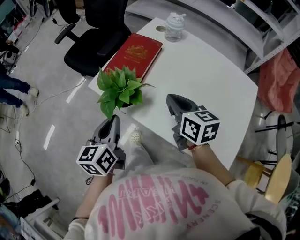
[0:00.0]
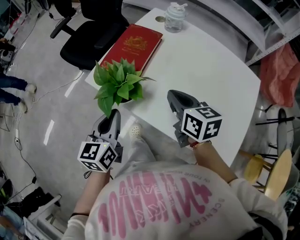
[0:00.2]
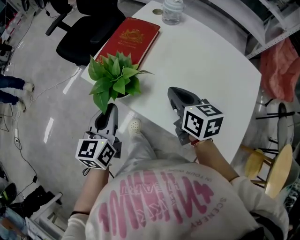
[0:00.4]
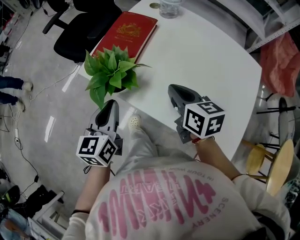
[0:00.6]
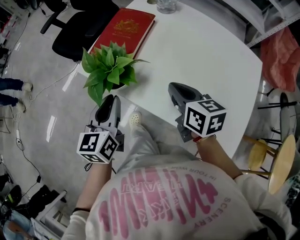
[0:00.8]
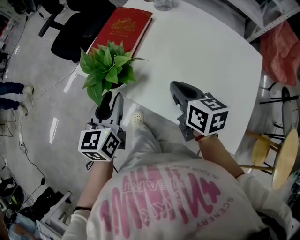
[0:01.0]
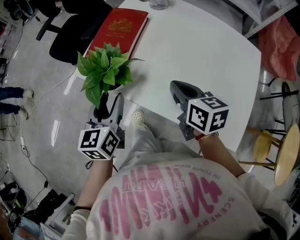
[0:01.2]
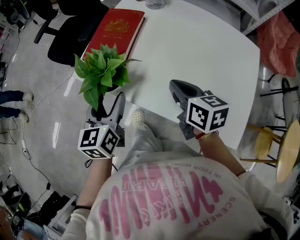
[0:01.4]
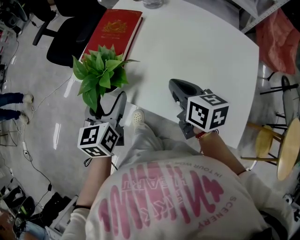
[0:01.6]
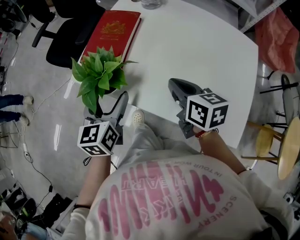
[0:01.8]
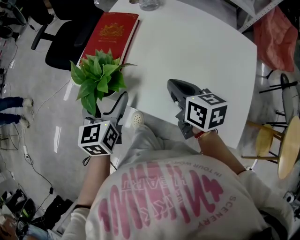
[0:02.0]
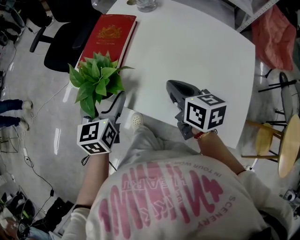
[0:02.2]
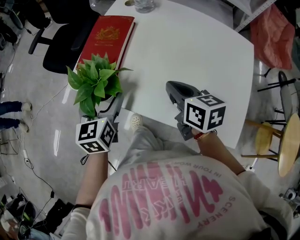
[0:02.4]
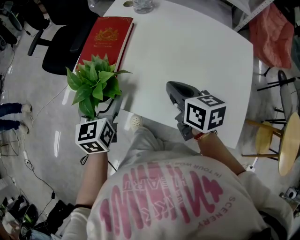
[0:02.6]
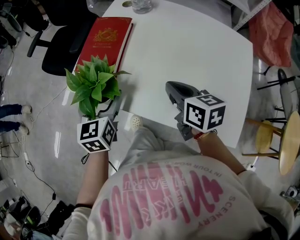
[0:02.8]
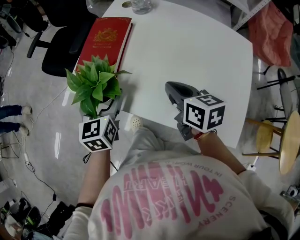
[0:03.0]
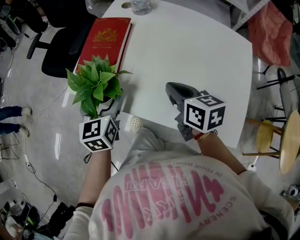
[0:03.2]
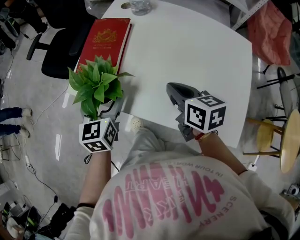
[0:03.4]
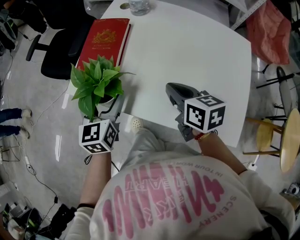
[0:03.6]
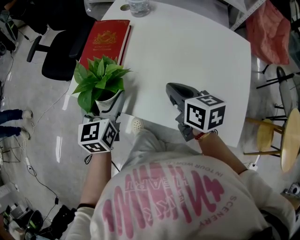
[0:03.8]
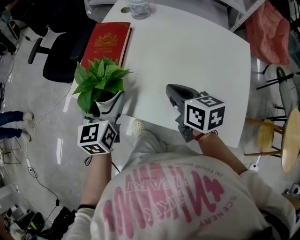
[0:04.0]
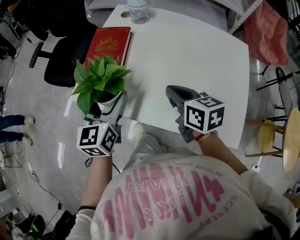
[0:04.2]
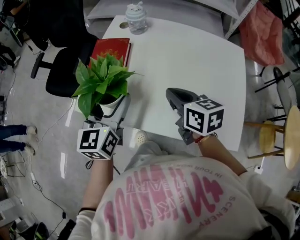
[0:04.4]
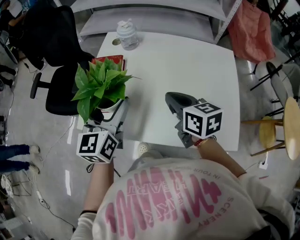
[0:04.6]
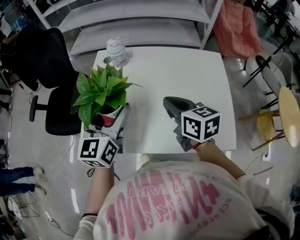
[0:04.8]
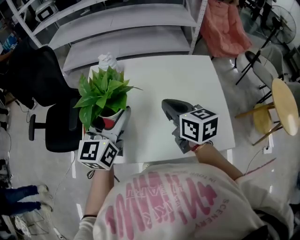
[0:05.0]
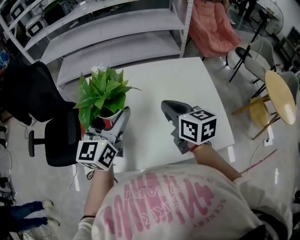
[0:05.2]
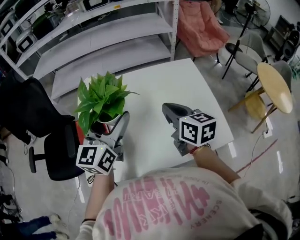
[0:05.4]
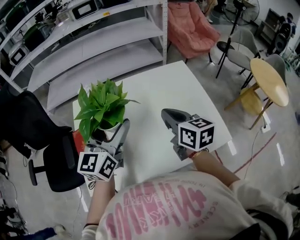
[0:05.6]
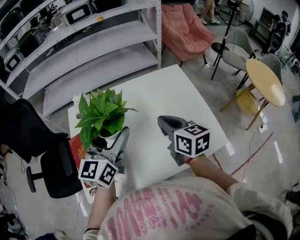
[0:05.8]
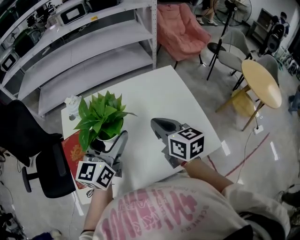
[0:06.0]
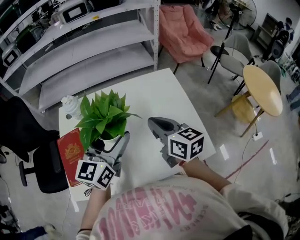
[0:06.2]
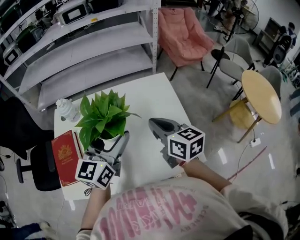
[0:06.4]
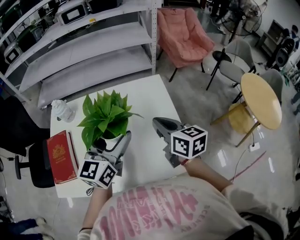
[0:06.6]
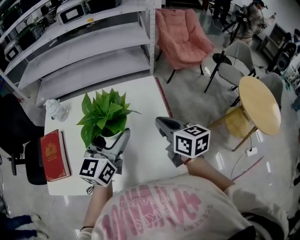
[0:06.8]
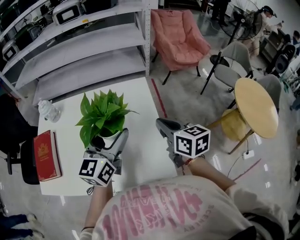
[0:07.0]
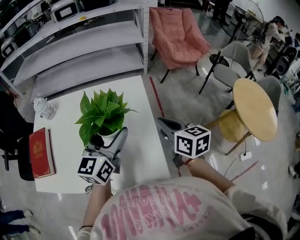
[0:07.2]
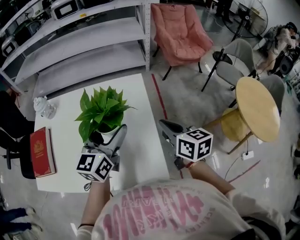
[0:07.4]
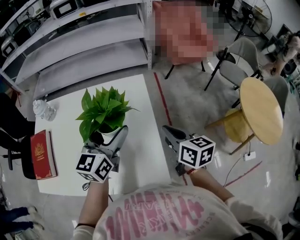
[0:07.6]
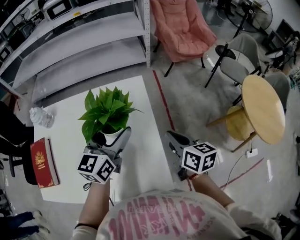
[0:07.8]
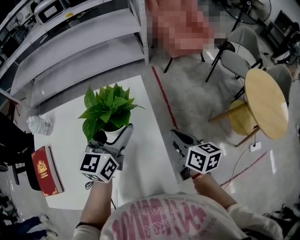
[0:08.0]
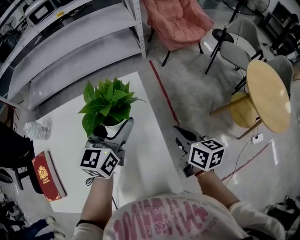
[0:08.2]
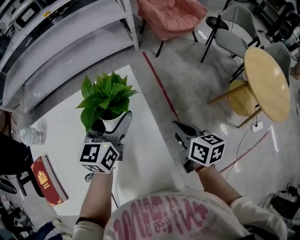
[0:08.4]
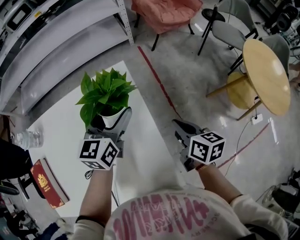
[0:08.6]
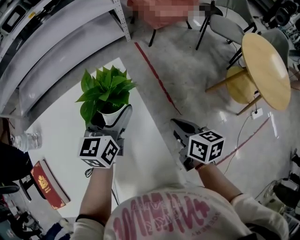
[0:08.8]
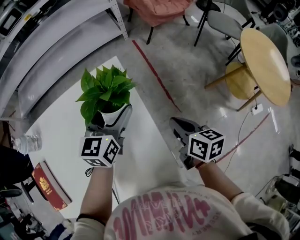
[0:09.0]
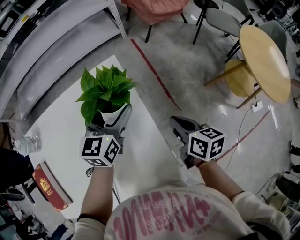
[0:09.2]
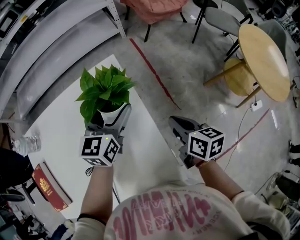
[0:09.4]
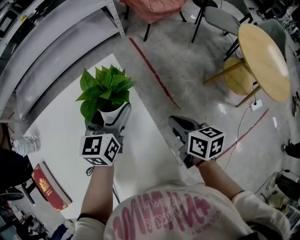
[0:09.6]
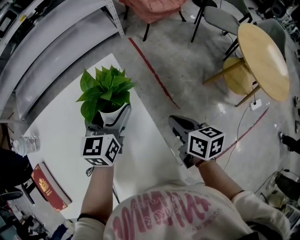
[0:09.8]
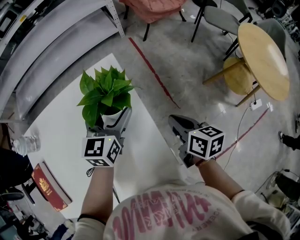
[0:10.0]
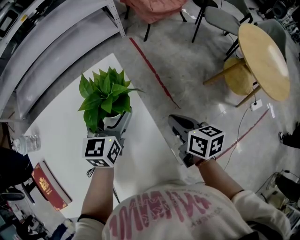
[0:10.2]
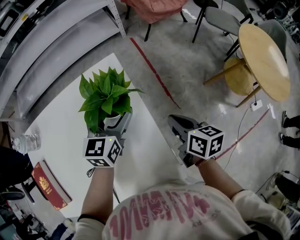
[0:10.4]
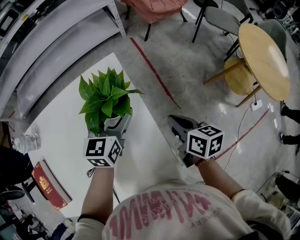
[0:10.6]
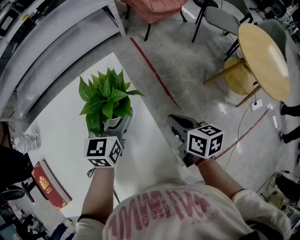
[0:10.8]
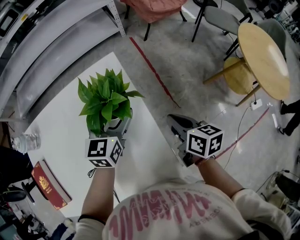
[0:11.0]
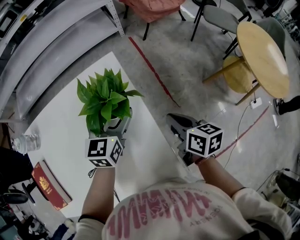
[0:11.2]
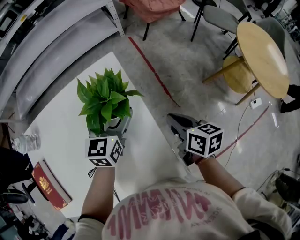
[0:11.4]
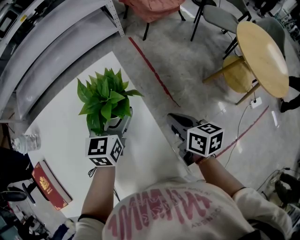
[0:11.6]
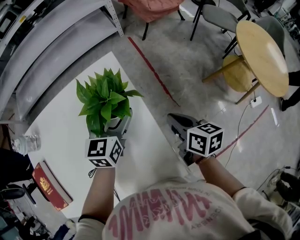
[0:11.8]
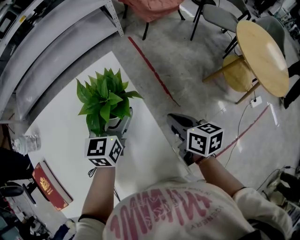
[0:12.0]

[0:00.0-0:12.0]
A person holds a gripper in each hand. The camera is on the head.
0:00.0 to 0:01.6: The right gripper shifts approximately 5 cm downward, while the left gripper moves some 5 cm, and opens up.
0:01.6 to 0:03.0: The grippers make only small movements.
0:03.0 to 0:04.4: The right gripper moves about 5 cm. Meanwhile the left gripper moves upward and to the right, about 10 cm.
0:04.4 to 0:06.0: The right gripper changes place by about 15 cm, and turns by about 30 degrees; the left gripper shifts by about 20 cm, and swivels about 40 degrees.
0:06.0 to 0:07.6: Both grippers move to the right, some 30 cm.
0:07.6 to 0:09.0: The left gripper is displaced forward, downward and to the right by about 20 cm, while the right gripper travels downward and to the right by roughly 10 cm, and changes its angle by about 20 degrees.
0:09.0 to 0:10.4: There are only small adjustments of the grippers.
0:10.4 to 0:12.0: Neither gripper changes place.

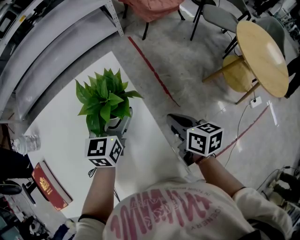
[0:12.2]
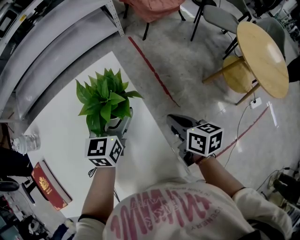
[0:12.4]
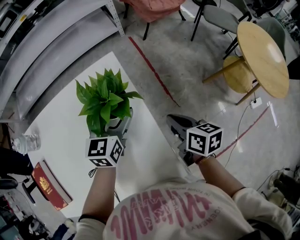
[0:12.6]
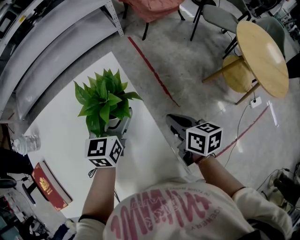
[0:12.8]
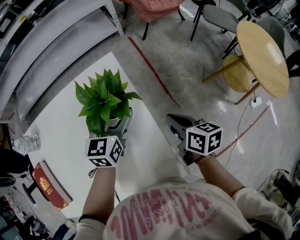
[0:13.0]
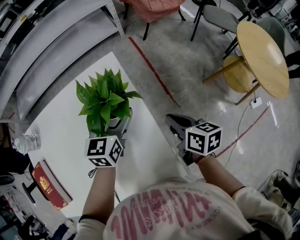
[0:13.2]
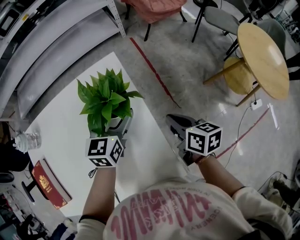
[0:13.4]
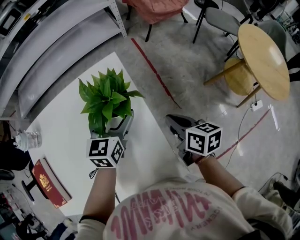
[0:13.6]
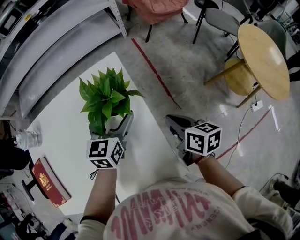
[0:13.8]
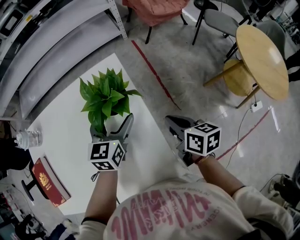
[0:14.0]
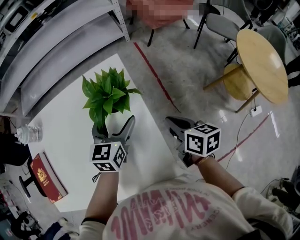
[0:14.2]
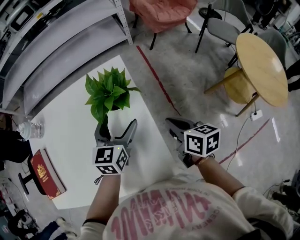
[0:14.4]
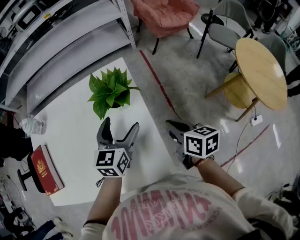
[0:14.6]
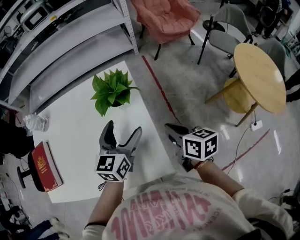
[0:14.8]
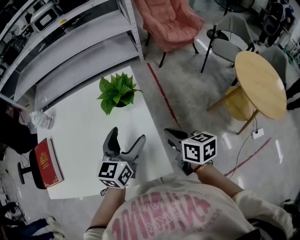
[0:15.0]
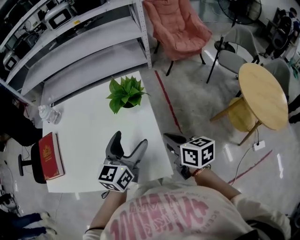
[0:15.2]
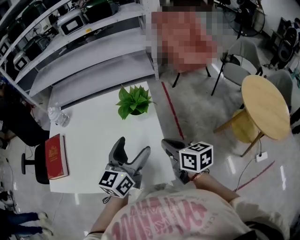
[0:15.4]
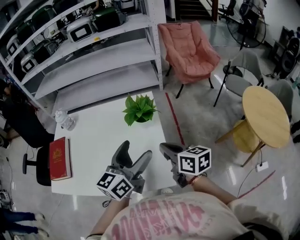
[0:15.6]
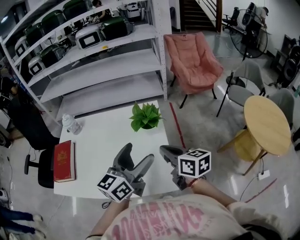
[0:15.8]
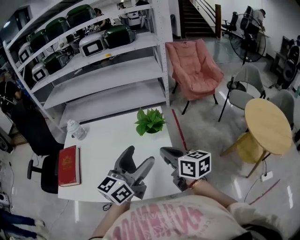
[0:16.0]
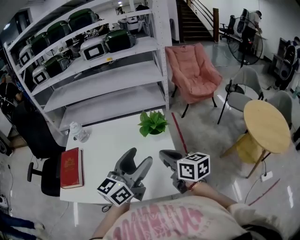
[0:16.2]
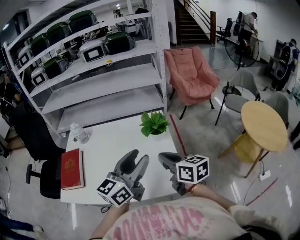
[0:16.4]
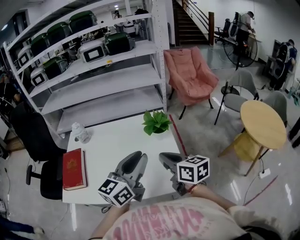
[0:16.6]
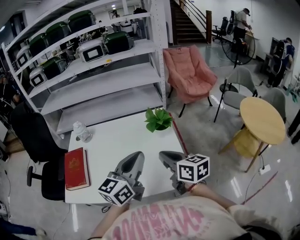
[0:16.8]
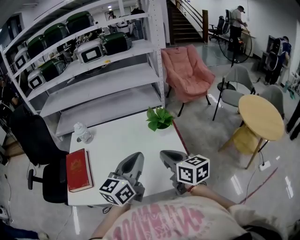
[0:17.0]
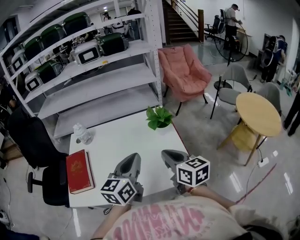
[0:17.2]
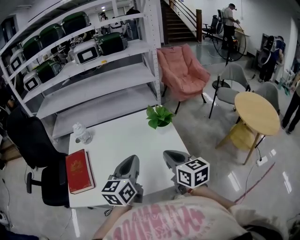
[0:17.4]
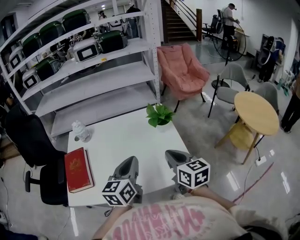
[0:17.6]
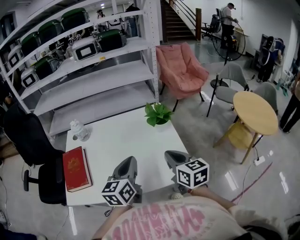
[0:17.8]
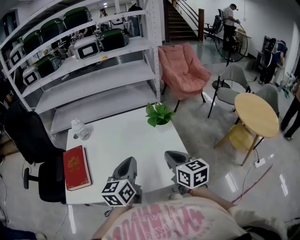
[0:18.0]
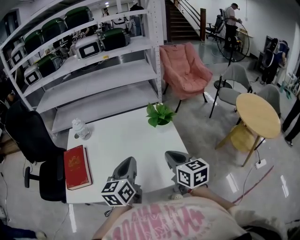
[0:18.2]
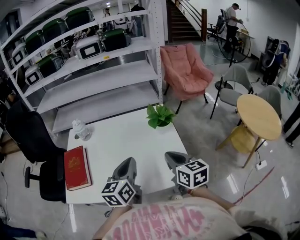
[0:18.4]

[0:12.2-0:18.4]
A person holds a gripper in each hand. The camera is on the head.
0:12.2 to 0:13.8: The grippers stay close to where they were, moving slightly.
0:13.8 to 0:15.4: The left gripper heads backward and upward, covering roughly 20 cm, and changes its angle by some 20 degrees, while the right gripper shifts approximately 15 cm upward, backward and to the left, and changes its angle by some 20 degrees.
0:15.4 to 0:16.8: The right gripper travels to the left and upward by approximately 15 cm; the left gripper goes approximately 15 cm to the left, upward and backward, and closes up.
0:16.8 to 0:18.4: The left gripper shifts roughly 10 cm to the left and downward.

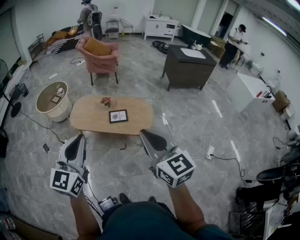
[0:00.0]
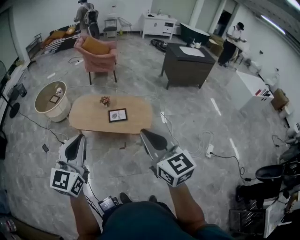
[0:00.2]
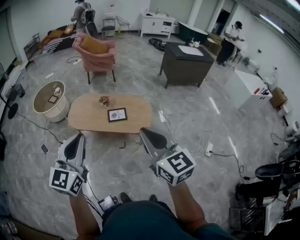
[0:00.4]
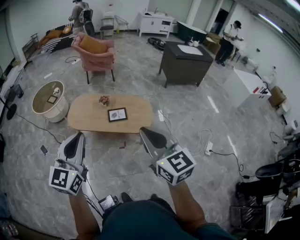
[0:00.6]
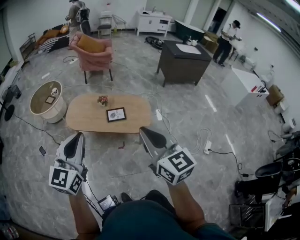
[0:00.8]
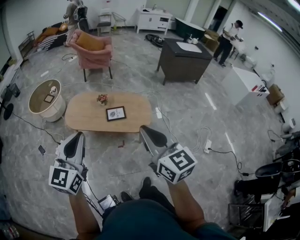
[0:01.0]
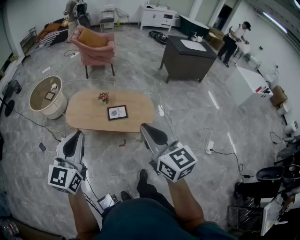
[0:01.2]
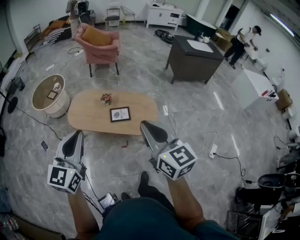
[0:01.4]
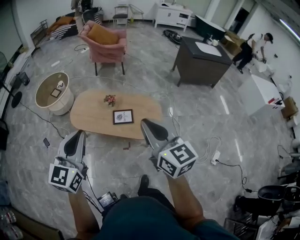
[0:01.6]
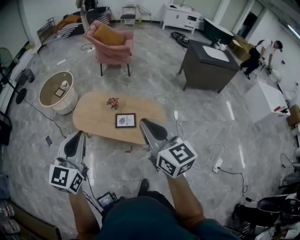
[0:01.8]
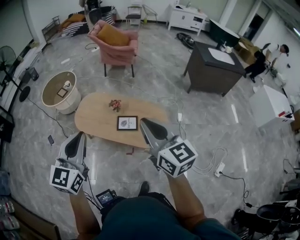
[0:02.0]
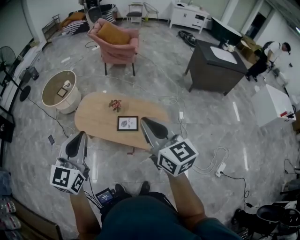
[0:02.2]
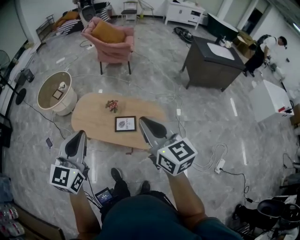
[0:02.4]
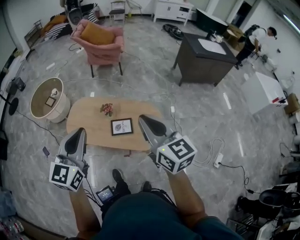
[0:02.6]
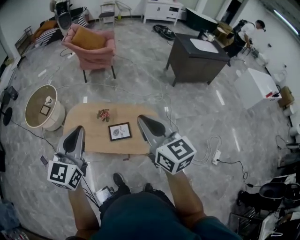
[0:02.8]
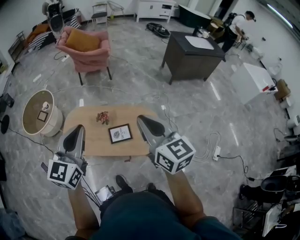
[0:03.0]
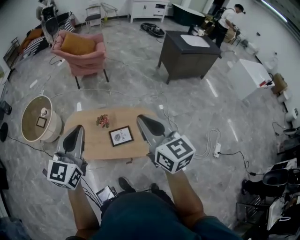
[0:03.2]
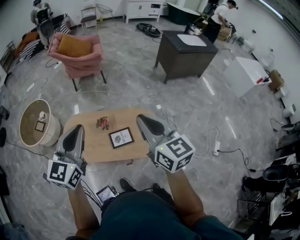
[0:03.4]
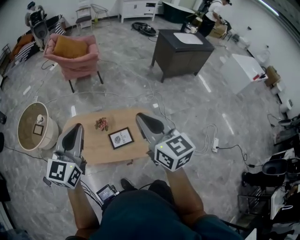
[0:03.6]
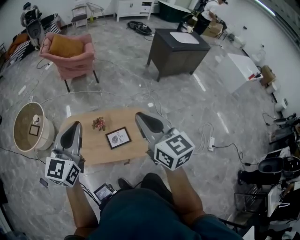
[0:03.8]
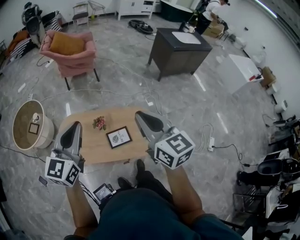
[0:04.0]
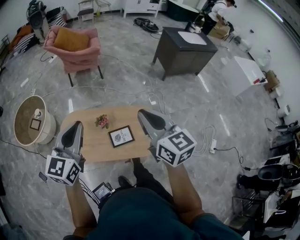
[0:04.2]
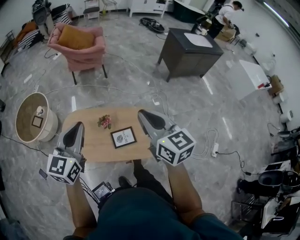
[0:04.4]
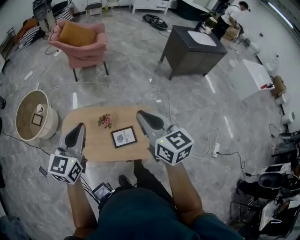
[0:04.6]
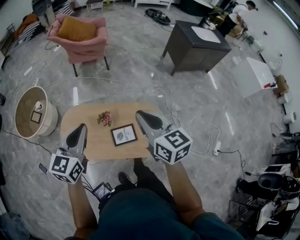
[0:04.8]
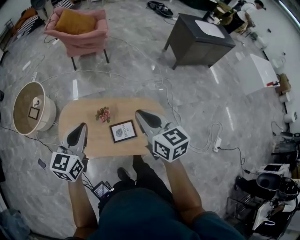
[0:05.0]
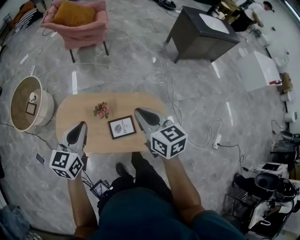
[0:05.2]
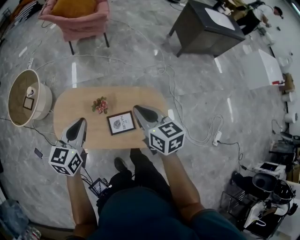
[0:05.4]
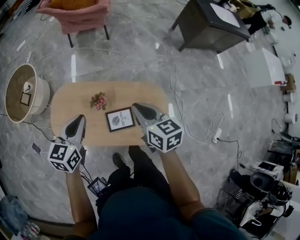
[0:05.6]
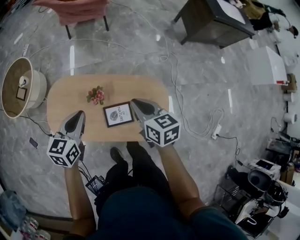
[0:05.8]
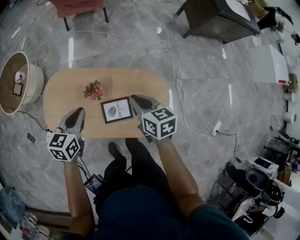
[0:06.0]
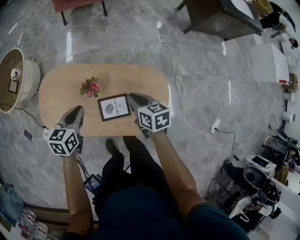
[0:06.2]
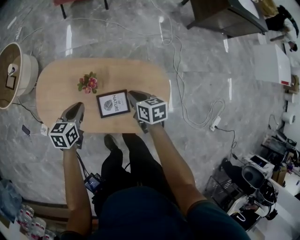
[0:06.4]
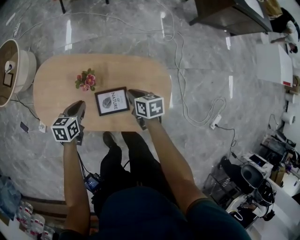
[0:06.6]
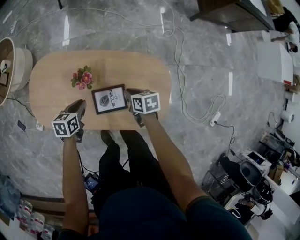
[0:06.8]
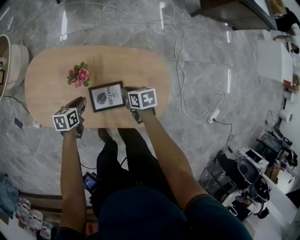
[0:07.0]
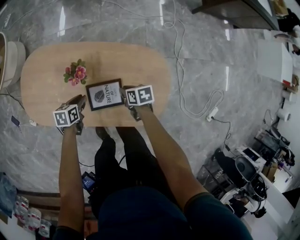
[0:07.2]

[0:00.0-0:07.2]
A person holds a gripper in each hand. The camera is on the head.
0:00.0 to 0:01.4: Both grippers move forward, some 15 cm.
0:01.4 to 0:02.8: Both grippers move forward, about 25 cm.
0:02.8 to 0:04.4: The two grippers go some 15 cm forward and to the left.
0:04.4 to 0:05.8: Both grippers travel together downward and forward, roughly 30 cm. The left gripper turns by approximately 30 degrees. The right gripper rotates some 30 degrees.
0:05.8 to 0:07.2: The grippers both shift downward by roughly 40 cm. The right gripper rotates approximately 40 degrees. Meanwhile the left gripper rotates approximately 40 degrees.
